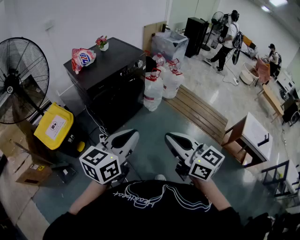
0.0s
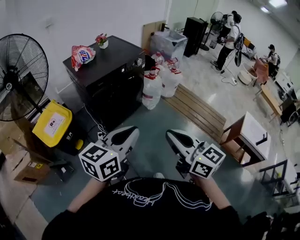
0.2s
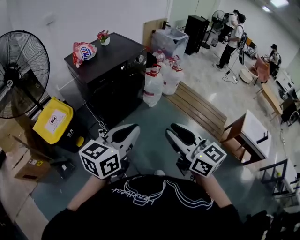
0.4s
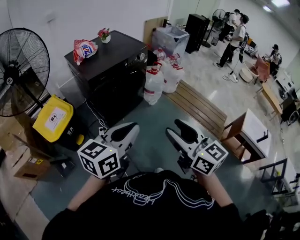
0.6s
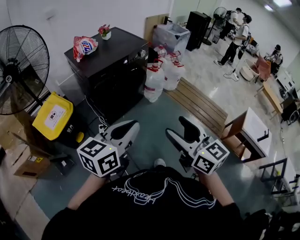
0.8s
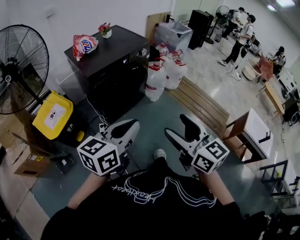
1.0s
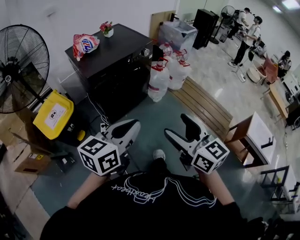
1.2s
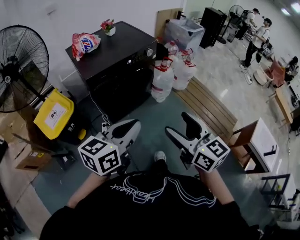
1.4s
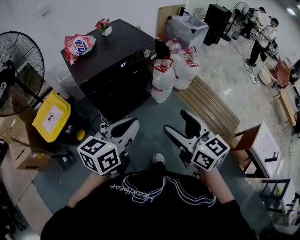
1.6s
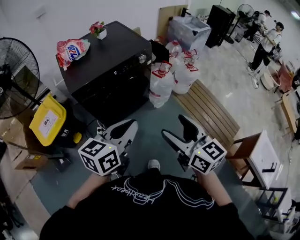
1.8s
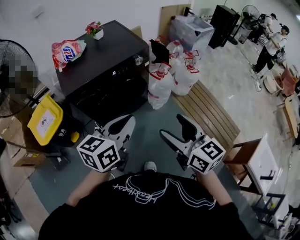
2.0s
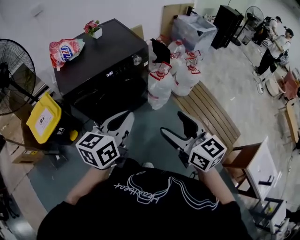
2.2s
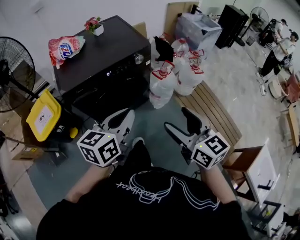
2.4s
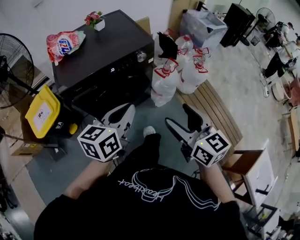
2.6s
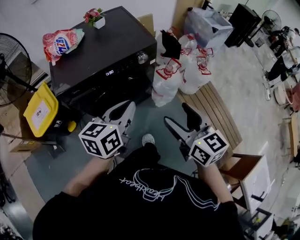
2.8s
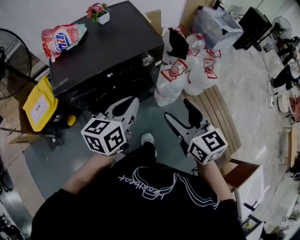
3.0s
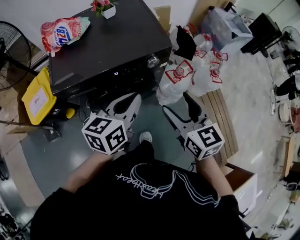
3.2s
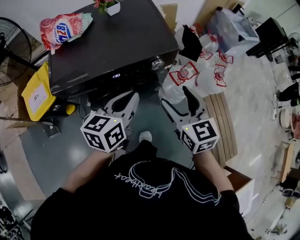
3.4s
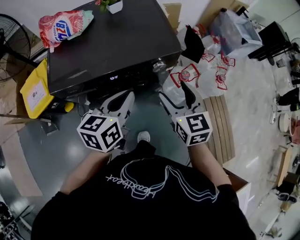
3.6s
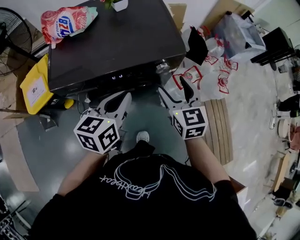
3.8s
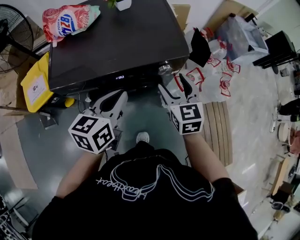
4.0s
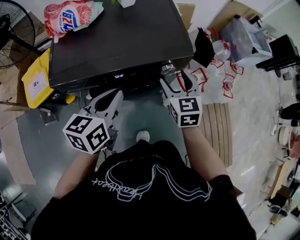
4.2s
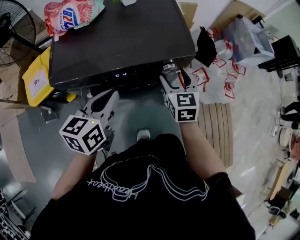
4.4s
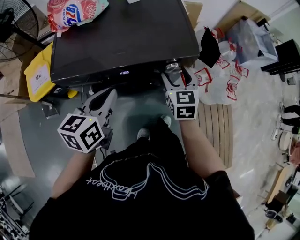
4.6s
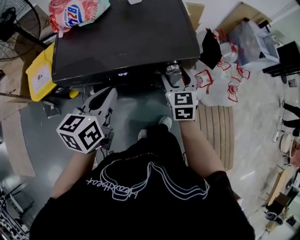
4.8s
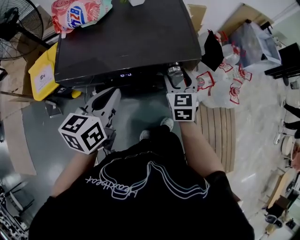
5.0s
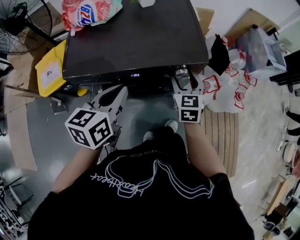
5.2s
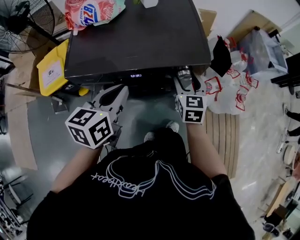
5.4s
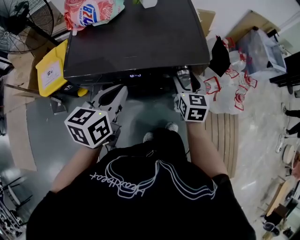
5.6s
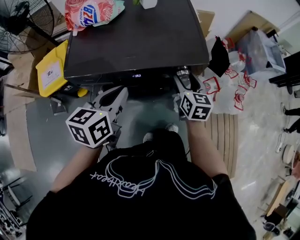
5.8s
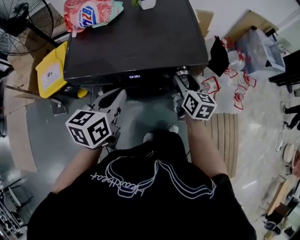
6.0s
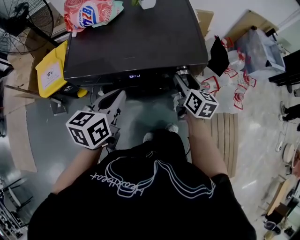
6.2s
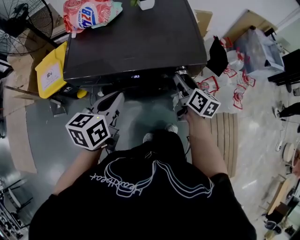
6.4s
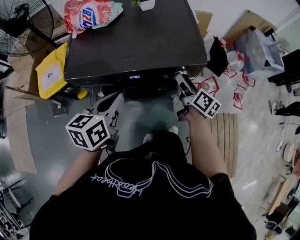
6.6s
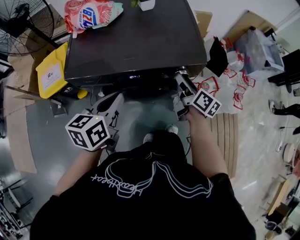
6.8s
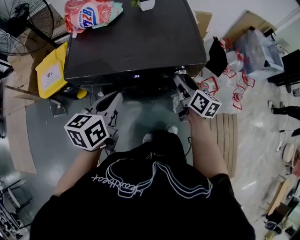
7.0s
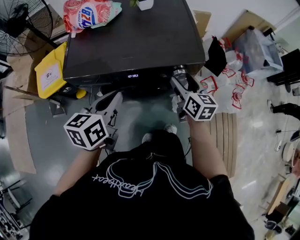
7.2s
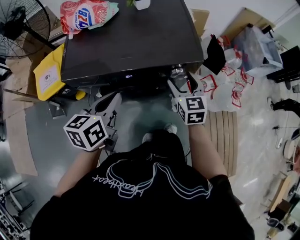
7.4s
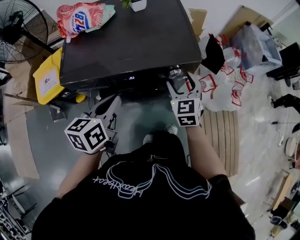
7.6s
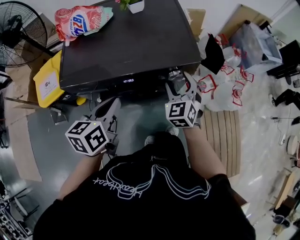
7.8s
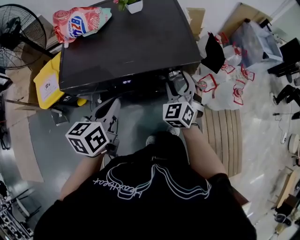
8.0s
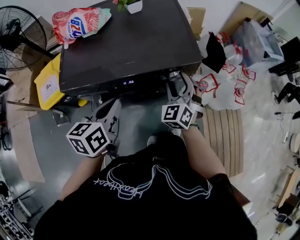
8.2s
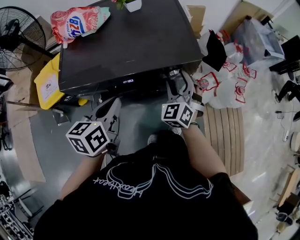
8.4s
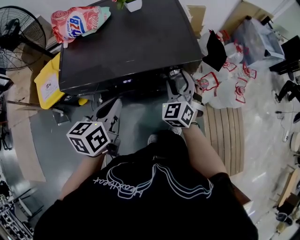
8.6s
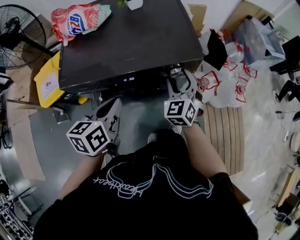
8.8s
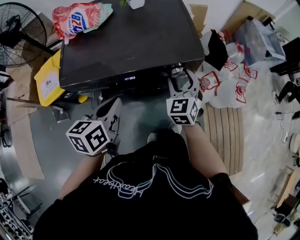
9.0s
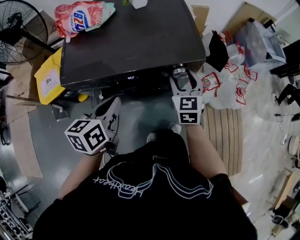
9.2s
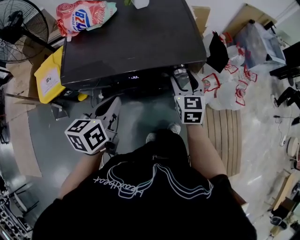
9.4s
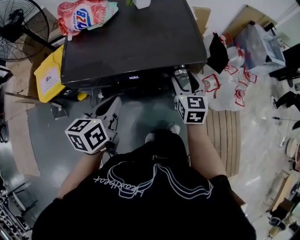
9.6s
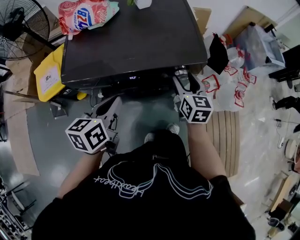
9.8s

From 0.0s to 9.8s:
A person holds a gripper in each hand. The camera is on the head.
From 0.0s to 1.4s: The grippers both shift forward by about 10 cm. The right gripper opens.
From 1.4s to 2.8s: The left gripper moves forward, about 30 cm, and changes its angle by approximately 20 degrees; the right gripper travels forward and to the right by some 35 cm.
From 2.8s to 4.2s: The left gripper moves forward and to the left, roughly 15 cm; the right gripper moves forward and downward, roughly 35 cm, and turns by some 20 degrees.
From 4.2s to 5.6s: The grippers make only small movements.
From 5.6s to 7.0s: The right gripper swivels about 40 degrees.
From 7.0s to 8.4s: The right gripper rotates around the line of its fingers by roughly 80 degrees, counterclockwise from behind.
From 8.4s to 9.8s: The right gripper rotates around the line of its fingers by some 50 degrees, clockwise from behind.

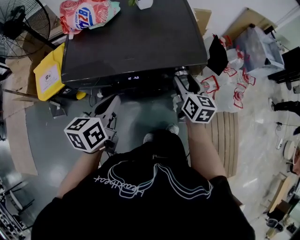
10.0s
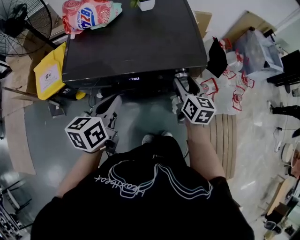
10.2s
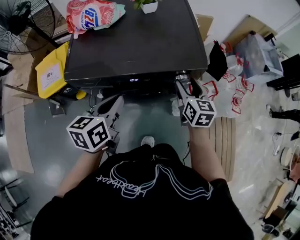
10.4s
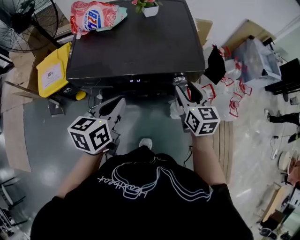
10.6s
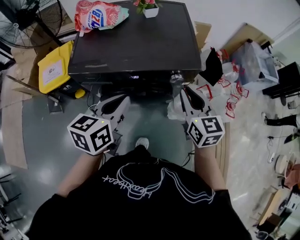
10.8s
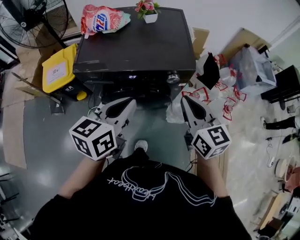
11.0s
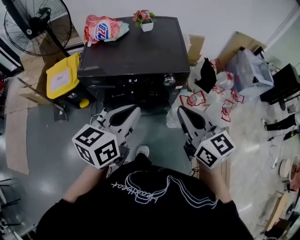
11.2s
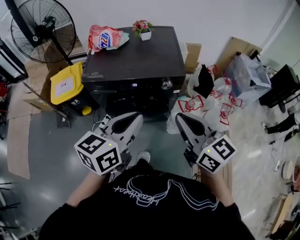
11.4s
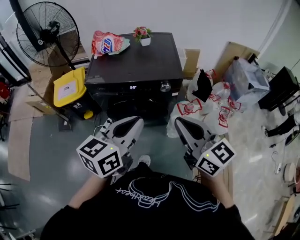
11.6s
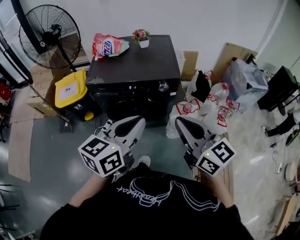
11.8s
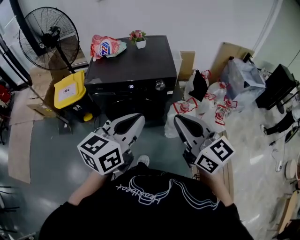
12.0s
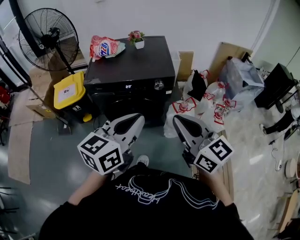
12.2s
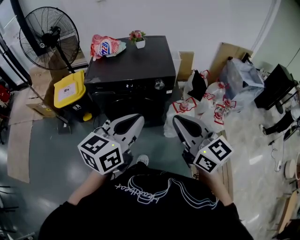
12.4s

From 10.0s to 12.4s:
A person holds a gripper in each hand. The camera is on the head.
From 10.0s to 11.2s: The right gripper goes approximately 30 cm upward and backward, swivels approximately 30 degrees, and closes its fingers; the left gripper moves upward, backward and to the right, about 20 cm.
From 11.2s to 12.4s: Both grippers travel together backward and upward, some 15 cm.

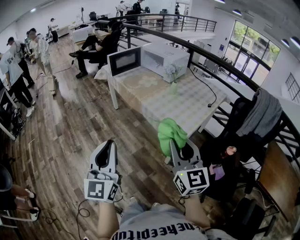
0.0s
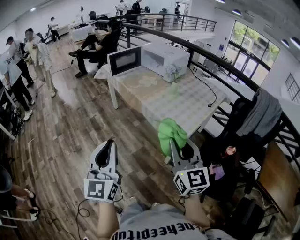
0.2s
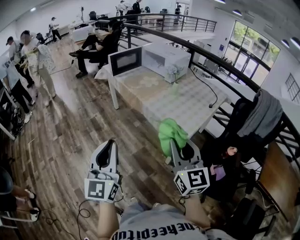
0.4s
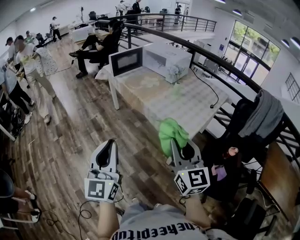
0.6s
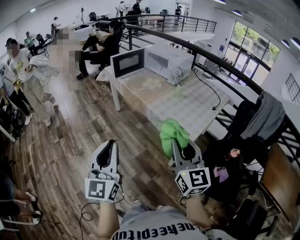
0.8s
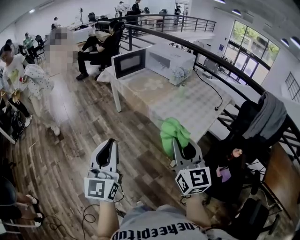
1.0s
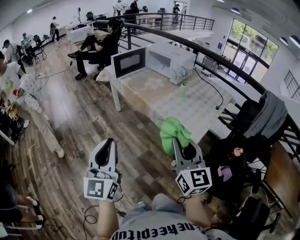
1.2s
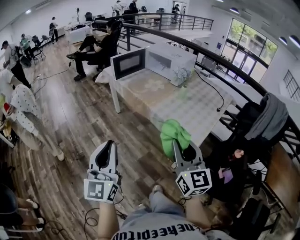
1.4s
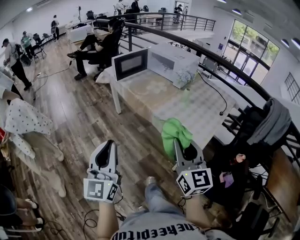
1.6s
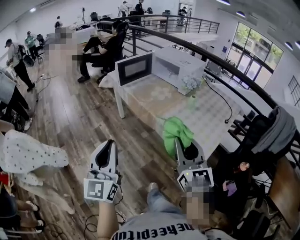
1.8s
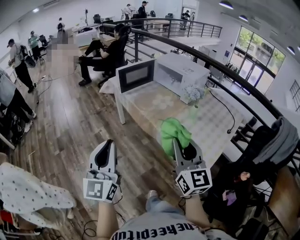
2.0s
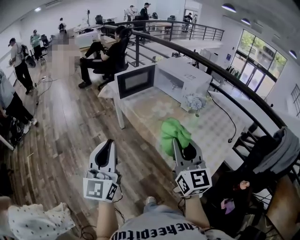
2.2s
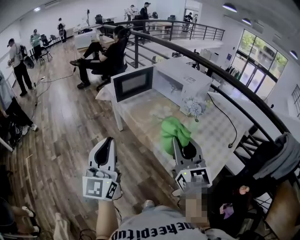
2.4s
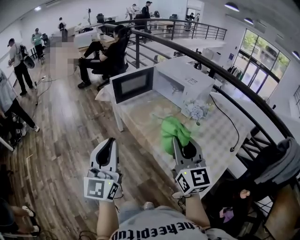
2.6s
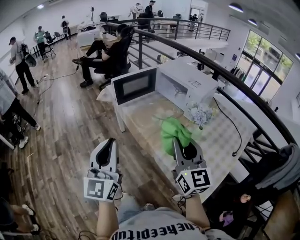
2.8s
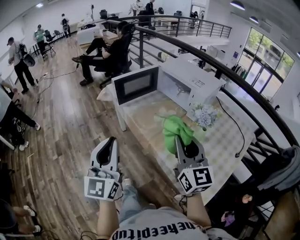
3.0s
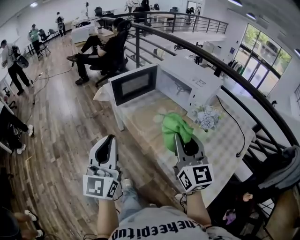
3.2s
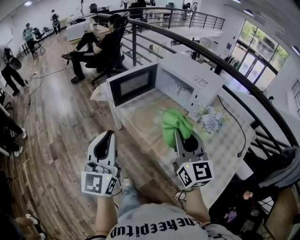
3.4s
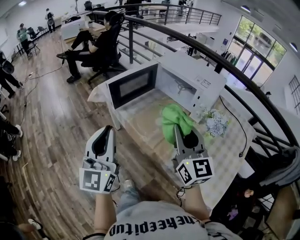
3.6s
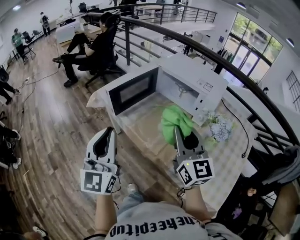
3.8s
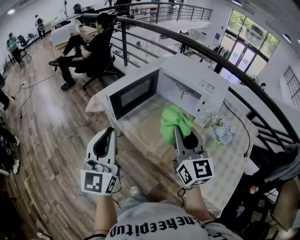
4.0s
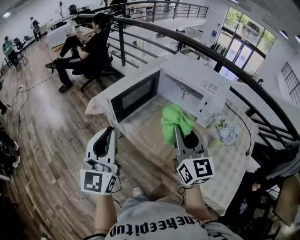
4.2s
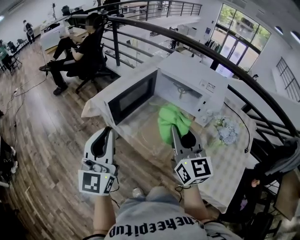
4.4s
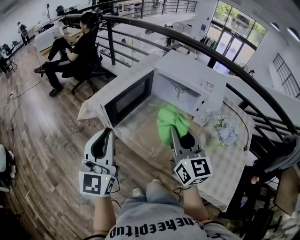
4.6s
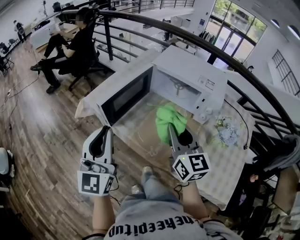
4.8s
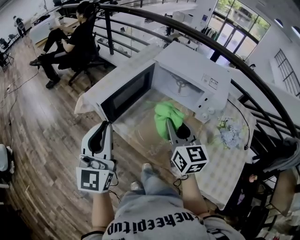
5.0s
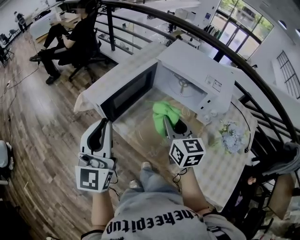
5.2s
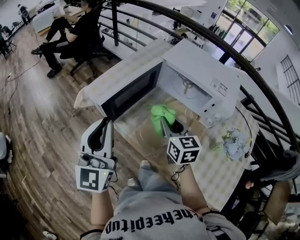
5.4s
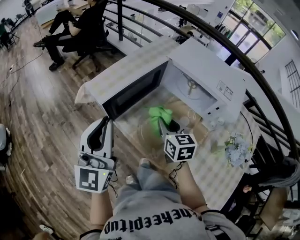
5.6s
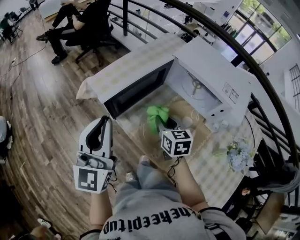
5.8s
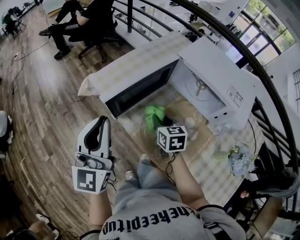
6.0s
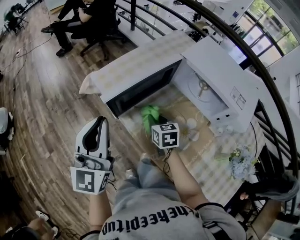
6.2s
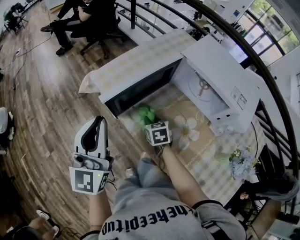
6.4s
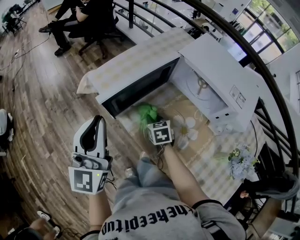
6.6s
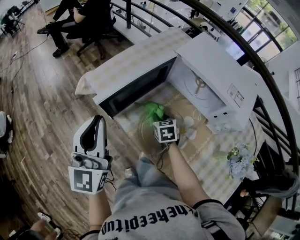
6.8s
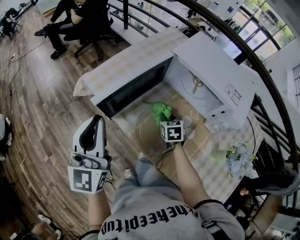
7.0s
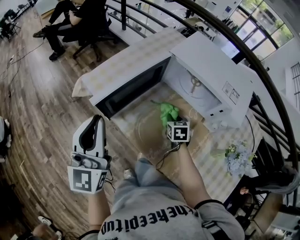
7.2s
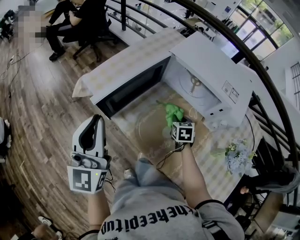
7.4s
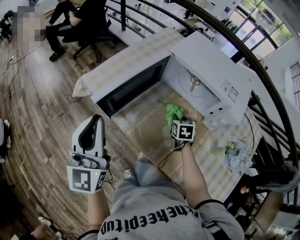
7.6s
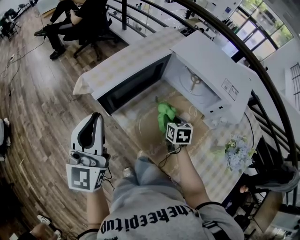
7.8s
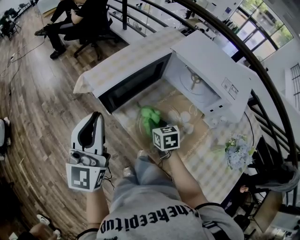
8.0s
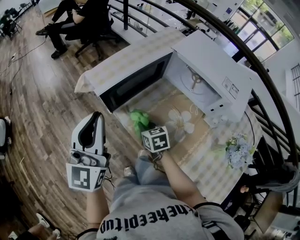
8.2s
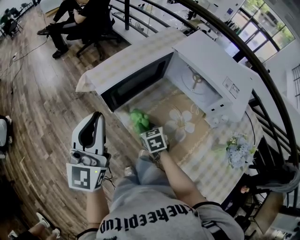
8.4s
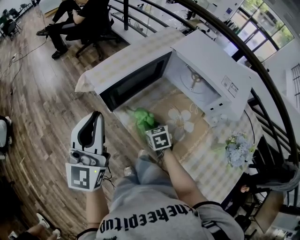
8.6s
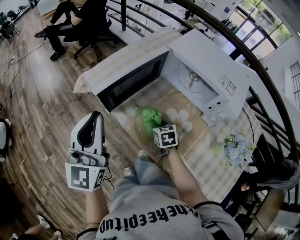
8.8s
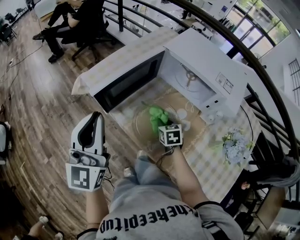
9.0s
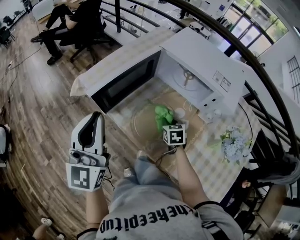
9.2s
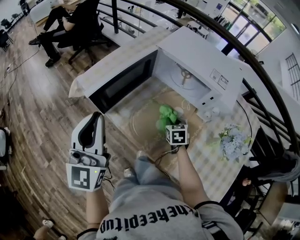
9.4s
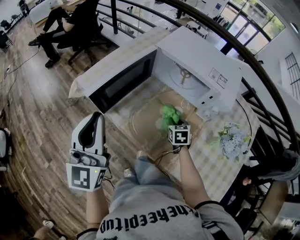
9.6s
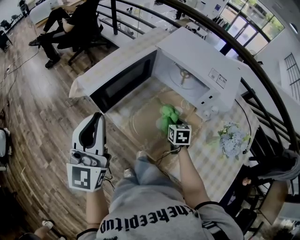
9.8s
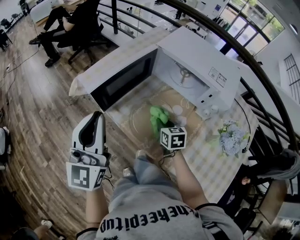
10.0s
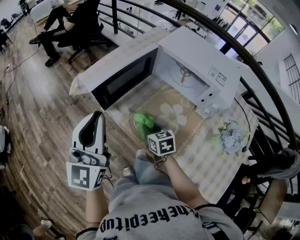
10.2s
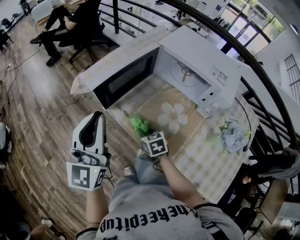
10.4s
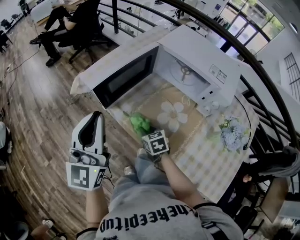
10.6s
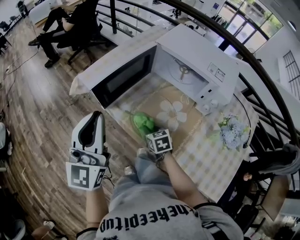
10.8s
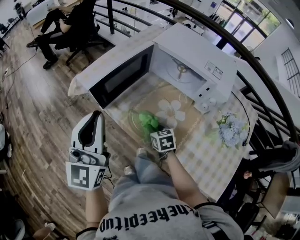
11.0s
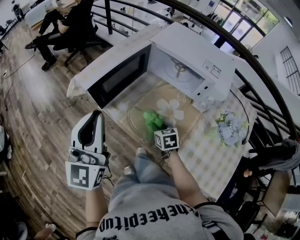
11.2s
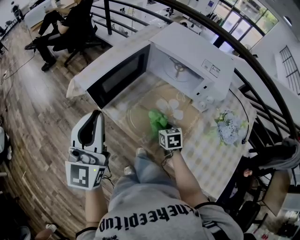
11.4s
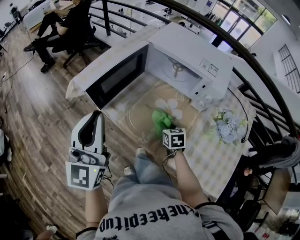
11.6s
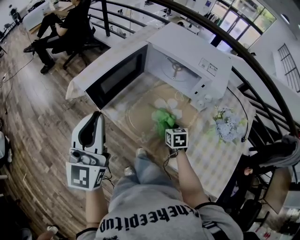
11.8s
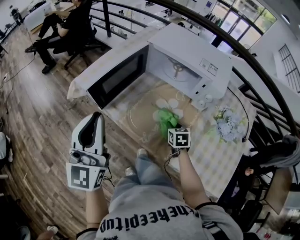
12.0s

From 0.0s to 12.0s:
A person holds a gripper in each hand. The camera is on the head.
From 0.0s to 1.6s: The two grippers go some 15 cm forward and to the left.
From 1.6s to 3.0s: The two grippers go roughly 30 cm forward.
From 3.0s to 4.4s: The grippers both shift forward and to the left by roughly 25 cm.
From 4.4s to 6.0s: The right gripper shifts some 30 cm downward and forward, and points its fingers some 40 degrees further downward. Meanwhile the left gripper heads forward, covering some 10 cm.
From 6.0s to 7.6s: The right gripper heads to the right and downward, covering approximately 15 cm, and swivels approximately 20 degrees.
From 7.6s to 9.0s: The right gripper heads to the left, covering roughly 5 cm.
From 9.0s to 10.4s: The right gripper shifts about 10 cm to the left and backward.
From 10.4s to 12.0s: The right gripper heads to the right, covering approximately 20 cm, and changes its angle by some 20 degrees.
